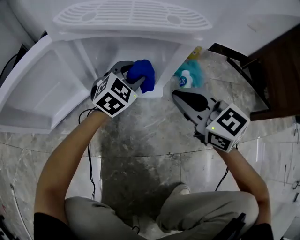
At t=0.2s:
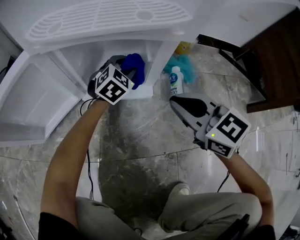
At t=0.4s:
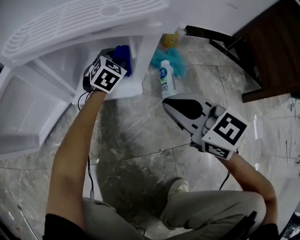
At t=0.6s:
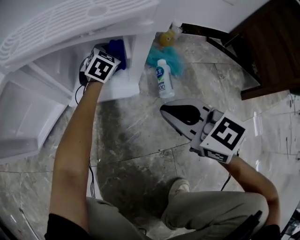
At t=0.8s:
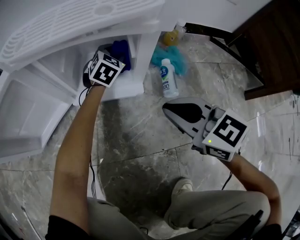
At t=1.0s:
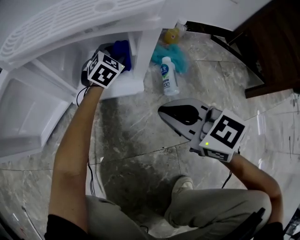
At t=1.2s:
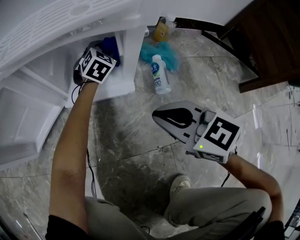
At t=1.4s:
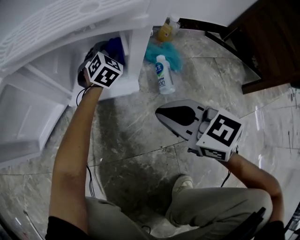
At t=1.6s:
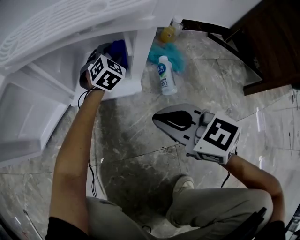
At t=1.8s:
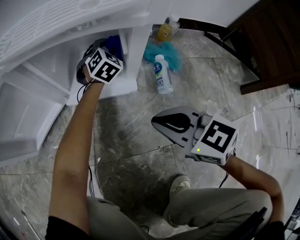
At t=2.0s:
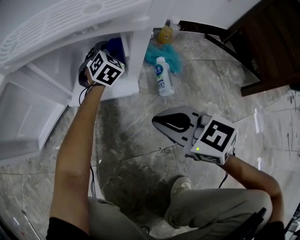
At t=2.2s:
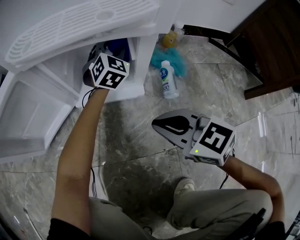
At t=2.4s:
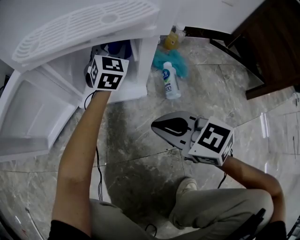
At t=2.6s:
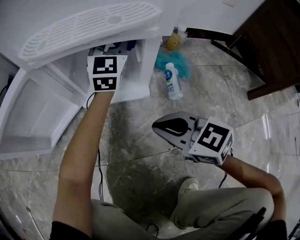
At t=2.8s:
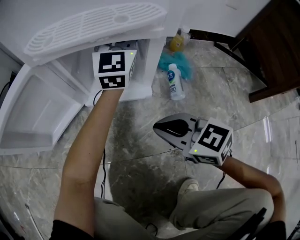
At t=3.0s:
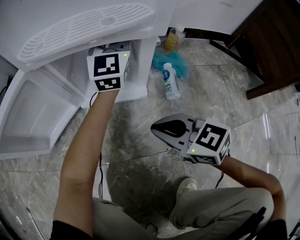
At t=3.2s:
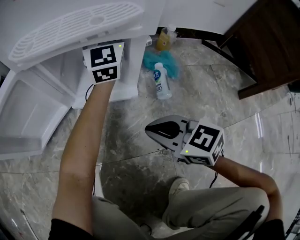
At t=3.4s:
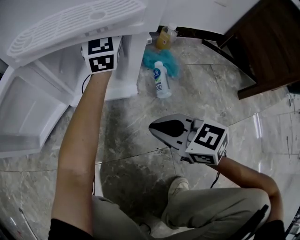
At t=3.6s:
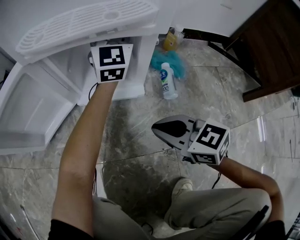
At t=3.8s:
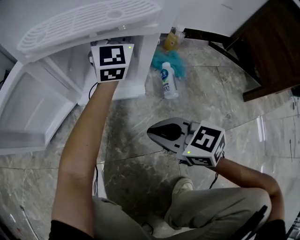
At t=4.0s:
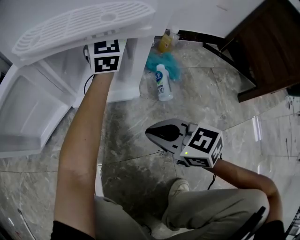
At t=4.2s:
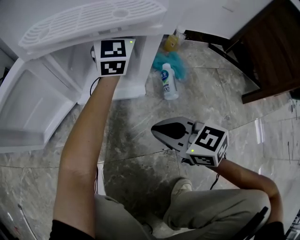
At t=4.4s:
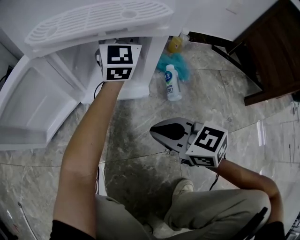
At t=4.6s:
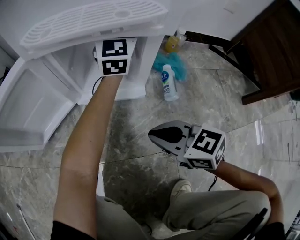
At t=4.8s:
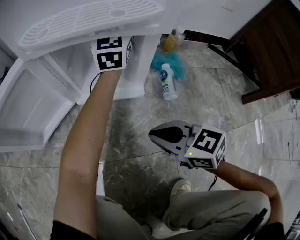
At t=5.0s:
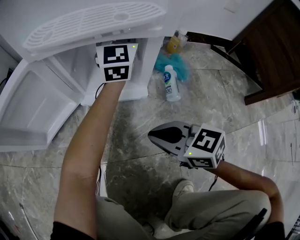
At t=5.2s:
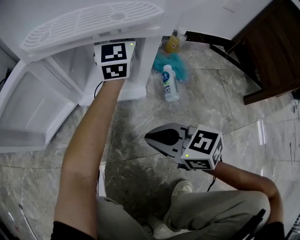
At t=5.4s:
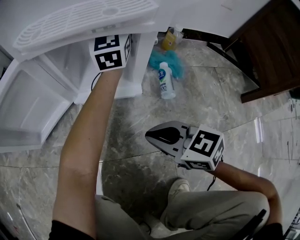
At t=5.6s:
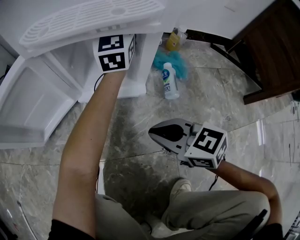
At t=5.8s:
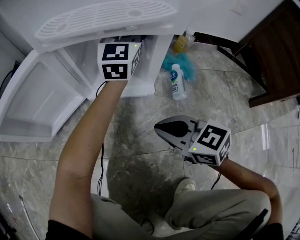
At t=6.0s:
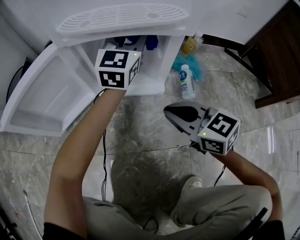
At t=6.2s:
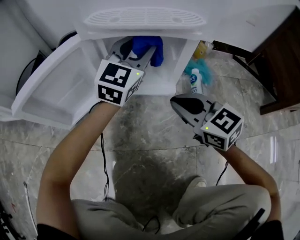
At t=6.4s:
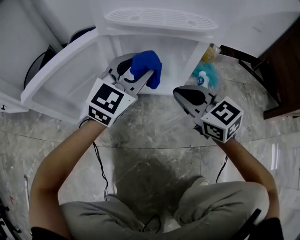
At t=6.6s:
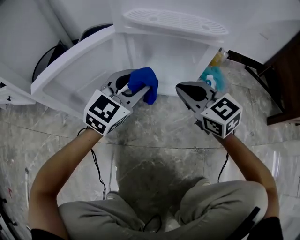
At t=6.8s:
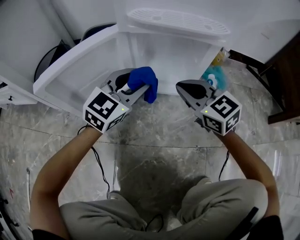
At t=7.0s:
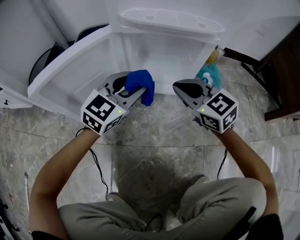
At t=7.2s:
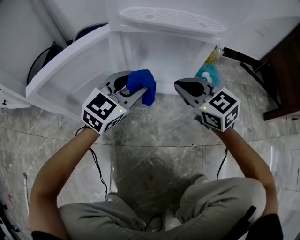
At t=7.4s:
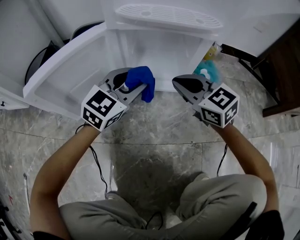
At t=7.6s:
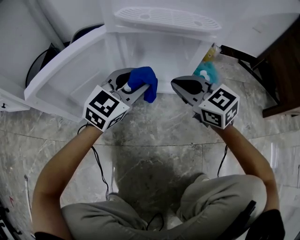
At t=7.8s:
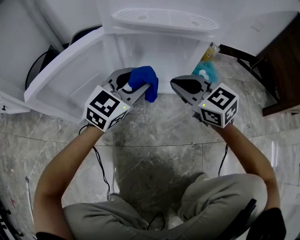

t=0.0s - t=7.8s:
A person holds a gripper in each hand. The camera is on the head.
t=0.0s - t=1.6s: The right gripper goes roughly 5 cm backward, while the left gripper shifts some 15 cm forward, downward and to the right.
t=1.6s - t=3.2s: The left gripper goes about 25 cm upward, and tips its fingers upward by some 40 degrees.
t=3.2s - t=4.6s: The grippers make only small movements.
t=4.6s - t=6.2s: The right gripper heads forward and upward, covering roughly 10 cm. Meanwhile the left gripper is displaced backward and to the left by approximately 15 cm.
t=6.2s - t=7.8s: The right gripper moves roughly 5 cm; the left gripper shifts some 15 cm backward, to the left and downward.

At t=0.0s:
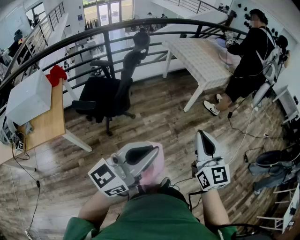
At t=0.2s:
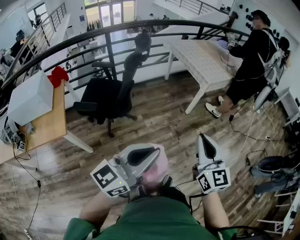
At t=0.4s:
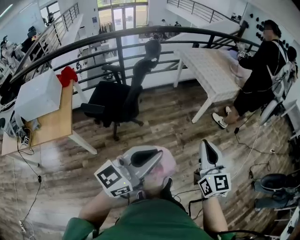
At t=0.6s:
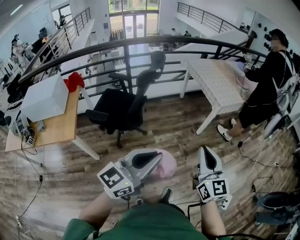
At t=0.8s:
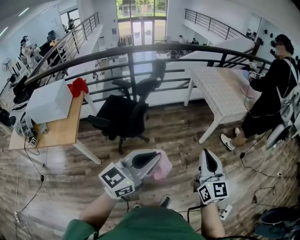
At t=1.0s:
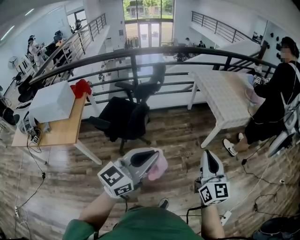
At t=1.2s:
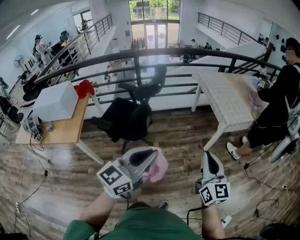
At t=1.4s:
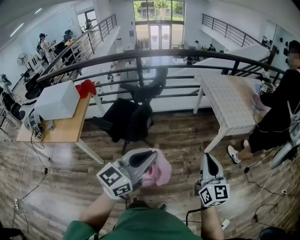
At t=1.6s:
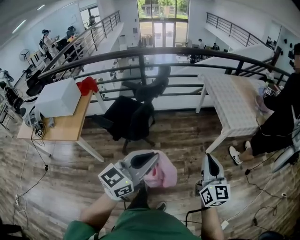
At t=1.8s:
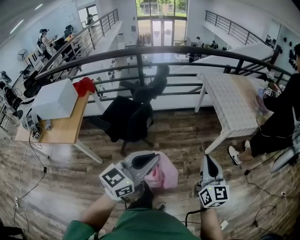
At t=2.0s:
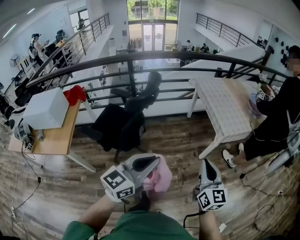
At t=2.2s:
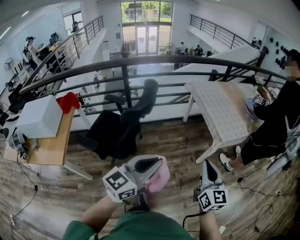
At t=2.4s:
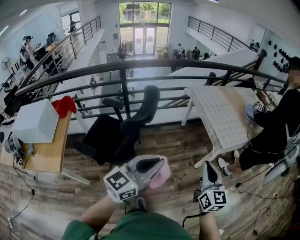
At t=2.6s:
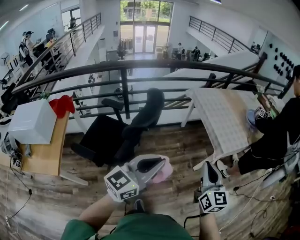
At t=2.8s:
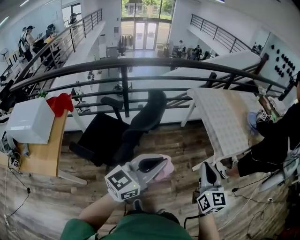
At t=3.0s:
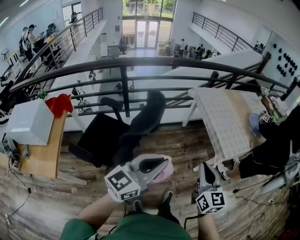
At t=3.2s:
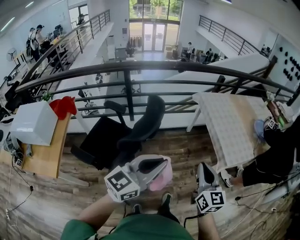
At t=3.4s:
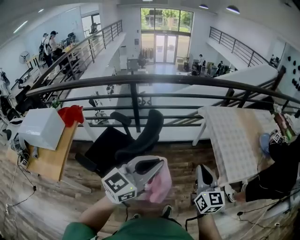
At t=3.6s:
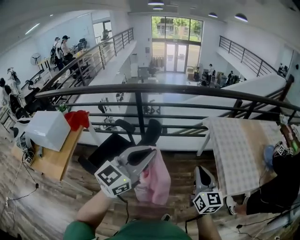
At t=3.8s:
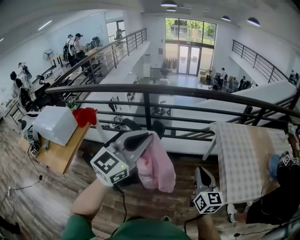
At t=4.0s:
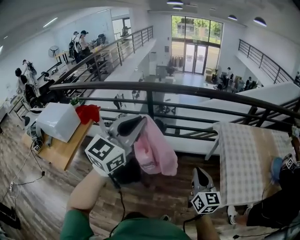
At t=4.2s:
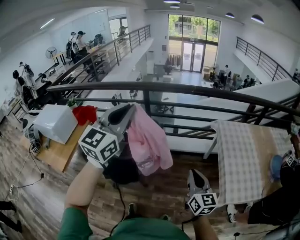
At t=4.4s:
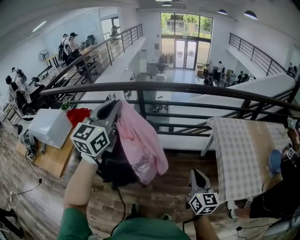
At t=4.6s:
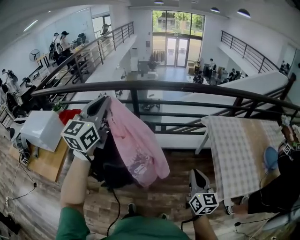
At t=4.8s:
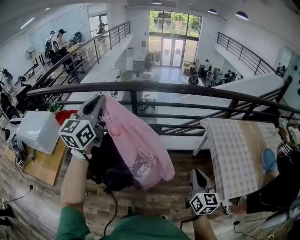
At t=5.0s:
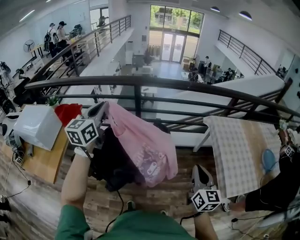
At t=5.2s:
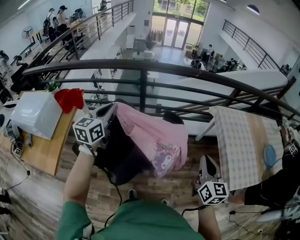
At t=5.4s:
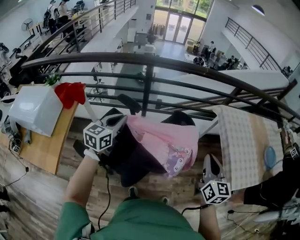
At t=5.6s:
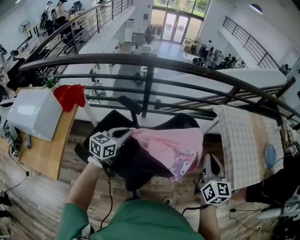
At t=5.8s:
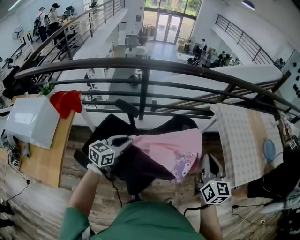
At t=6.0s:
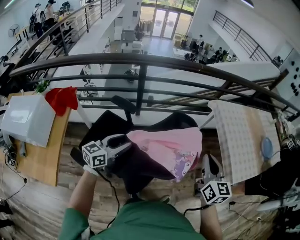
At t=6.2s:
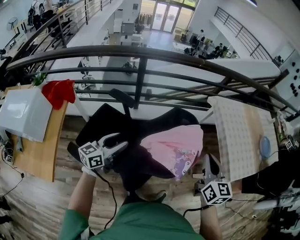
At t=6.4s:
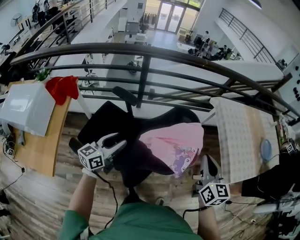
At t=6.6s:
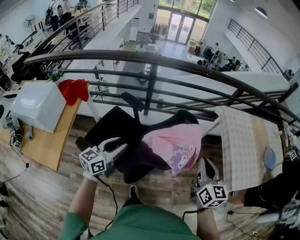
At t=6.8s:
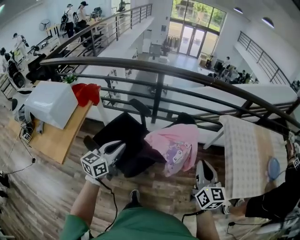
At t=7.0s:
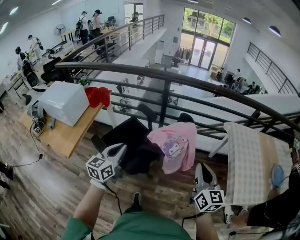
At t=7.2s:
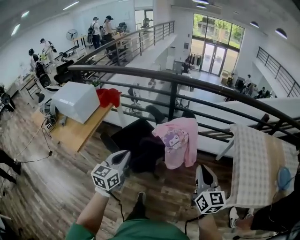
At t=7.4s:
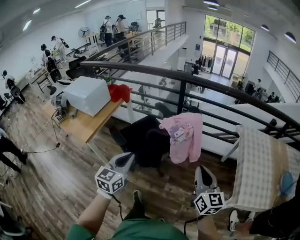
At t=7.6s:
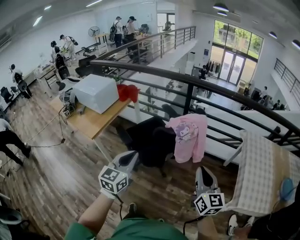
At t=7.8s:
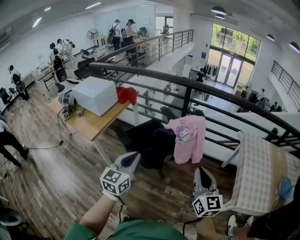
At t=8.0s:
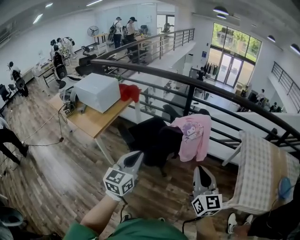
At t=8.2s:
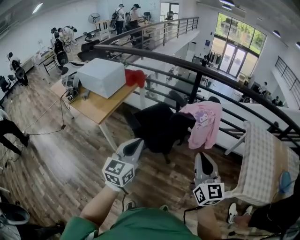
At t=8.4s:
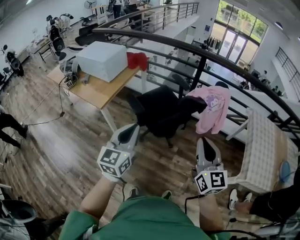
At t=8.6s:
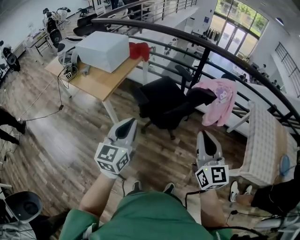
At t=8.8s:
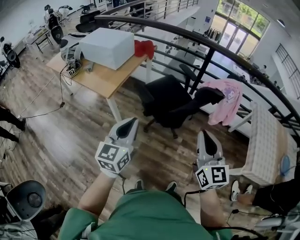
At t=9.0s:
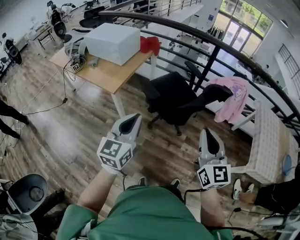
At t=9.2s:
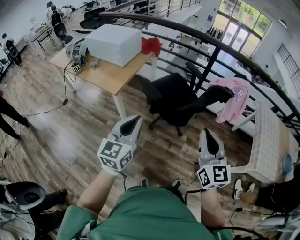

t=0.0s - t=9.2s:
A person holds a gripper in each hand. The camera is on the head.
t=0.0s - t=1.6s: Both grippers travel together forward and to the right, approximately 25 cm. The left gripper changes its angle by some 30 degrees.
t=1.6s - t=3.0s: The grippers both shift forward and to the left by about 30 cm.
t=3.0s - t=4.6s: The left gripper shifts by some 35 cm, and turns by roughly 50 degrees. Meanwhile the right gripper changes place by some 25 cm.
t=4.6s - t=6.2s: The left gripper is displaced downward and to the left by roughly 40 cm, changes its angle by roughly 50 degrees, and opens up. Meanwhile the right gripper is displaced to the left by about 20 cm.
t=6.2s - t=7.6s: The right gripper shifts by roughly 30 cm, and rotates some 30 degrees, while the left gripper ends up roughly 50 cm from where it was, changes its angle by about 50 degrees, and closes.
t=7.6s - t=9.2s: The grippers both shift to the left by approximately 35 cm.

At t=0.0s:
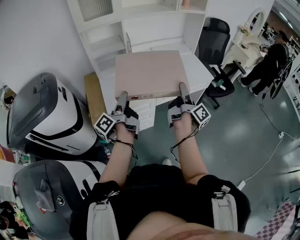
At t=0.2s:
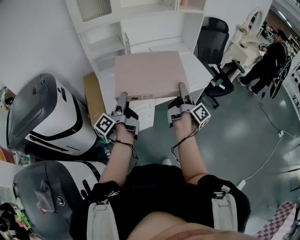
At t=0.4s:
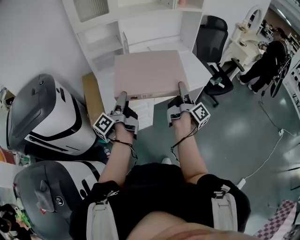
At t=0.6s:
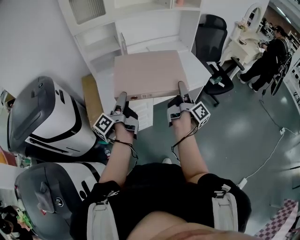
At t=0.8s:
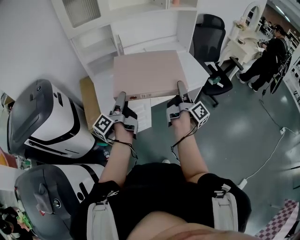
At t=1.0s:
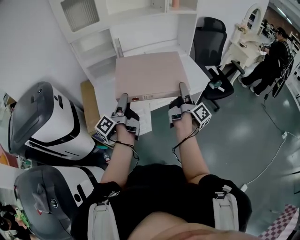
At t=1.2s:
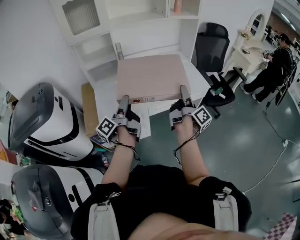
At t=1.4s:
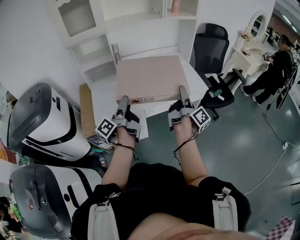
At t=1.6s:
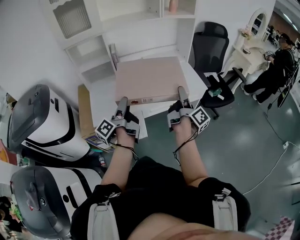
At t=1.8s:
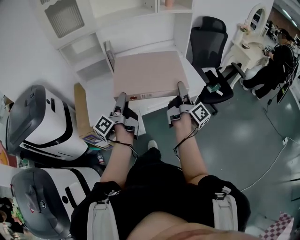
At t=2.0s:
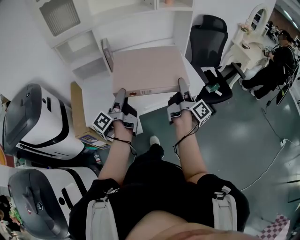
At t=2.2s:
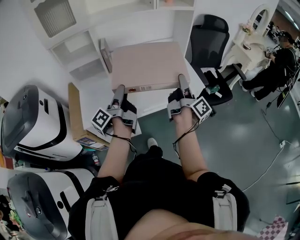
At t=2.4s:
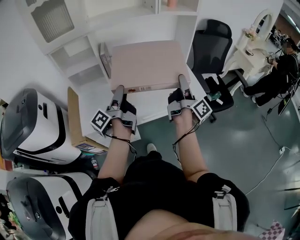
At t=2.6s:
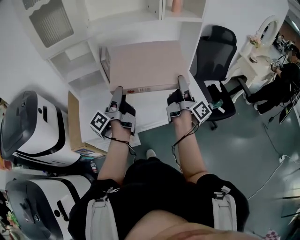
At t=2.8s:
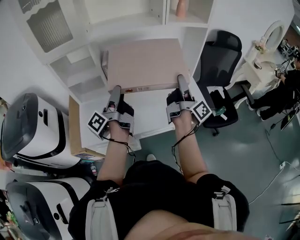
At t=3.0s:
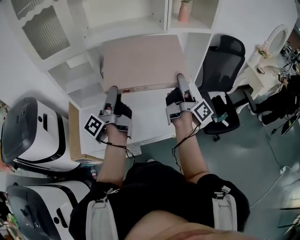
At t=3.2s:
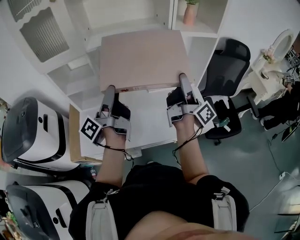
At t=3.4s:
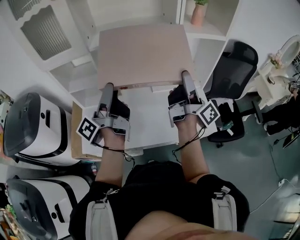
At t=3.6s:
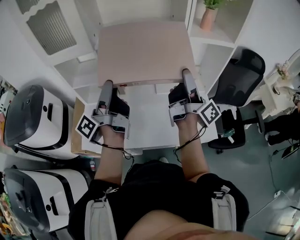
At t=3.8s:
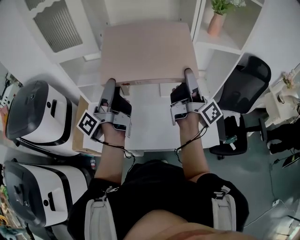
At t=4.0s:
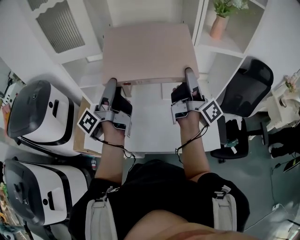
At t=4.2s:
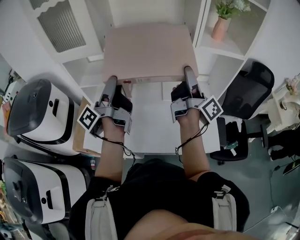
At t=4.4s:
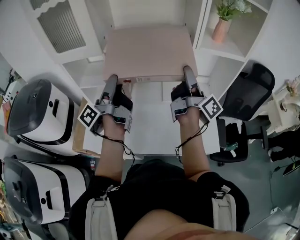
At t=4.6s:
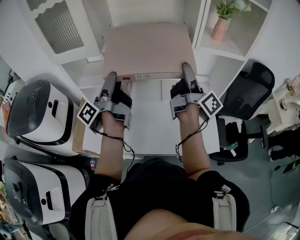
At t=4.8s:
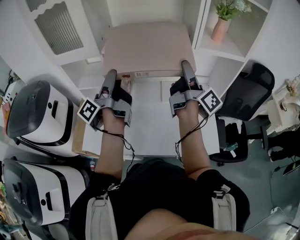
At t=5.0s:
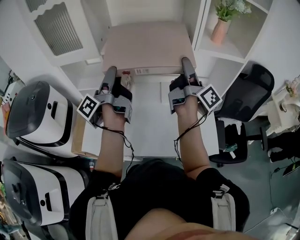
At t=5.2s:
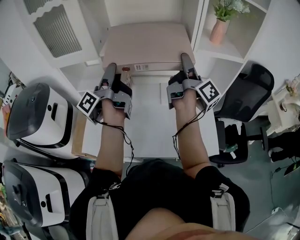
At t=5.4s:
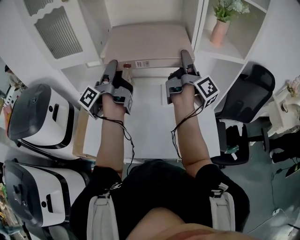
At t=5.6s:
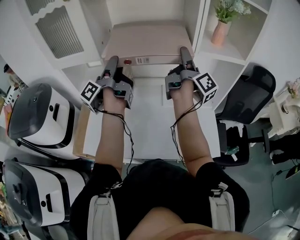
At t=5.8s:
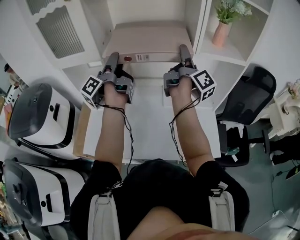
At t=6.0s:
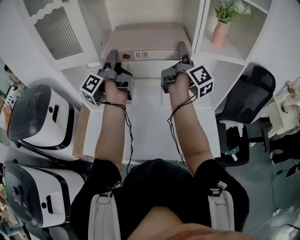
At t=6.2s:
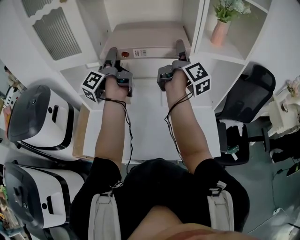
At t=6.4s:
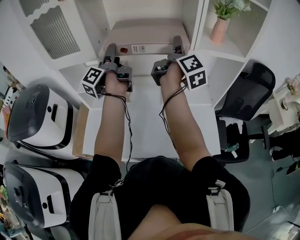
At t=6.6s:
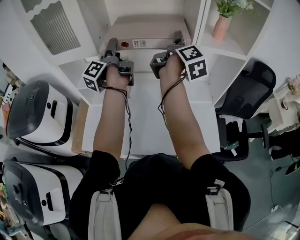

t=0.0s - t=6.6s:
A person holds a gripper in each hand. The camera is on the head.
t=0.0s - t=1.6s: The two grippers go some 15 cm to the right and forward.
t=1.6s - t=3.2s: The right gripper is displaced forward by about 35 cm, and swivels some 20 degrees; the left gripper shifts approximately 30 cm forward and upward.
t=3.2s - t=5.0s: The grippers both shift forward by approximately 15 cm.
t=5.0s - t=6.6s: The grippers both shift forward by about 10 cm. The right gripper changes its angle by about 30 degrees.
